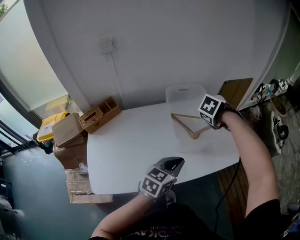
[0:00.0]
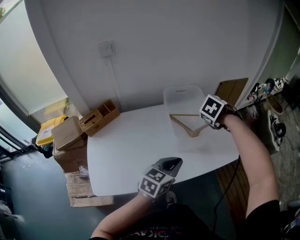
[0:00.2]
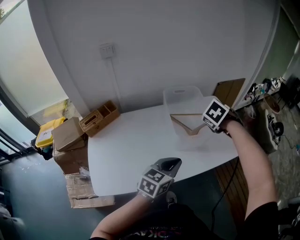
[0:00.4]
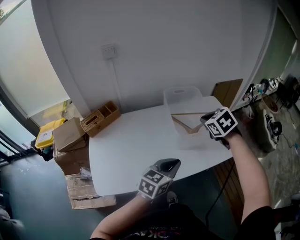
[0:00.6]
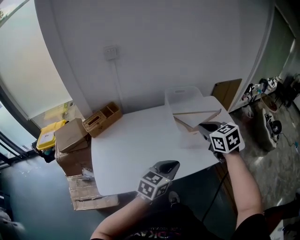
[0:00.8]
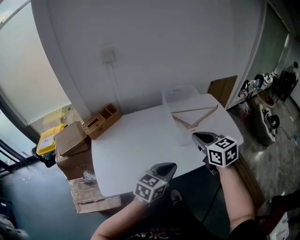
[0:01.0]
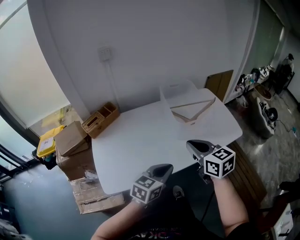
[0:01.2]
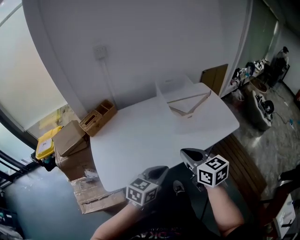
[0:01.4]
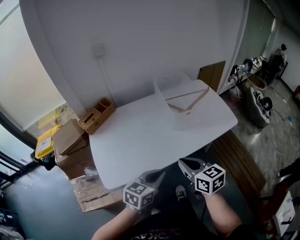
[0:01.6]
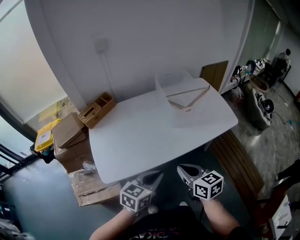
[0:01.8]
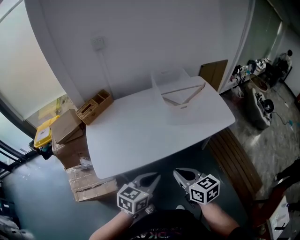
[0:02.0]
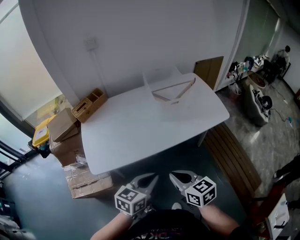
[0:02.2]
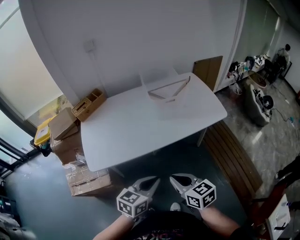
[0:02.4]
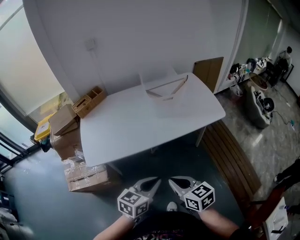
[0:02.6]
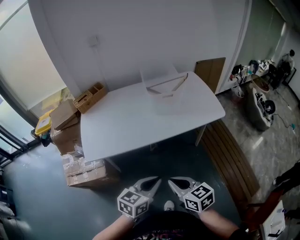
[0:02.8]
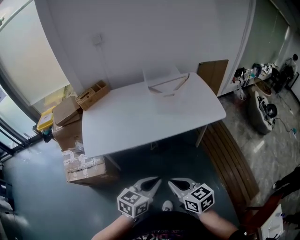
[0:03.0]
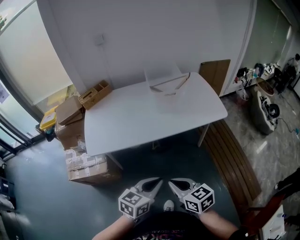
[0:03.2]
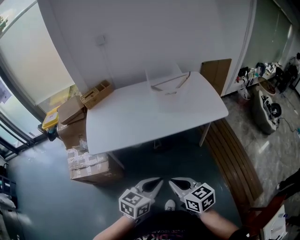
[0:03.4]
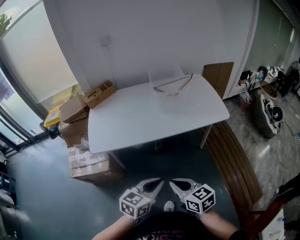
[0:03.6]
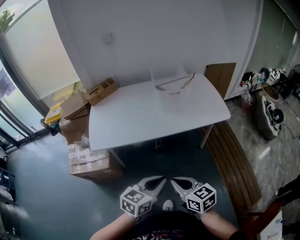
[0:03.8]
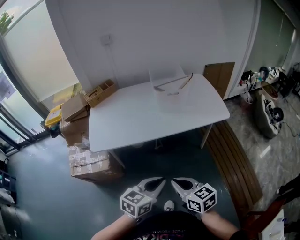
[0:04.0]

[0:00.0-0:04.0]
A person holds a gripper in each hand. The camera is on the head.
0.0 to 1.4 s: The right gripper changes place by roughly 35 cm, angles its fingers upward, by roughly 60 degrees, and closes up, while the left gripper ends up roughly 20 cm from where it was.
1.4 to 2.6 s: The two grippers go some 25 cm backward and to the right.
2.6 to 4.0 s: The right gripper moves backward, approximately 10 cm; the left gripper goes about 10 cm backward and to the right.

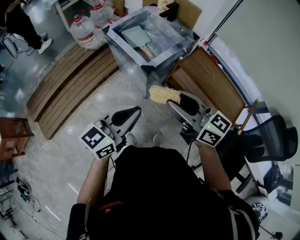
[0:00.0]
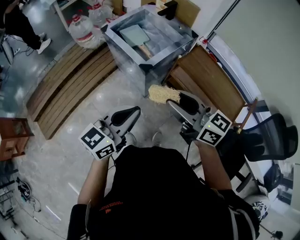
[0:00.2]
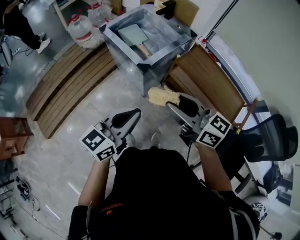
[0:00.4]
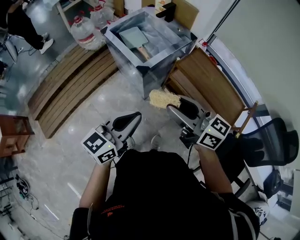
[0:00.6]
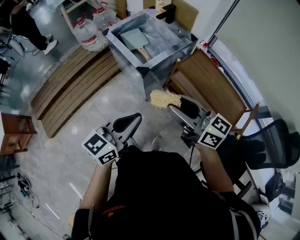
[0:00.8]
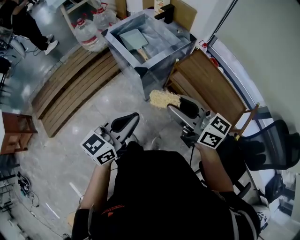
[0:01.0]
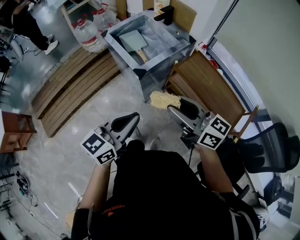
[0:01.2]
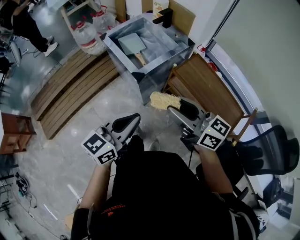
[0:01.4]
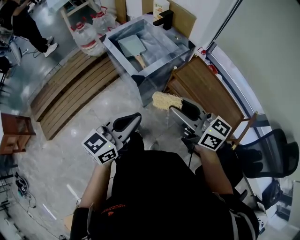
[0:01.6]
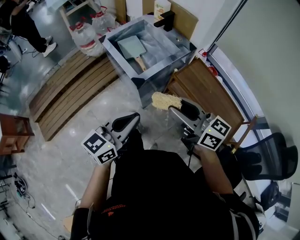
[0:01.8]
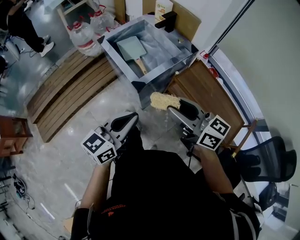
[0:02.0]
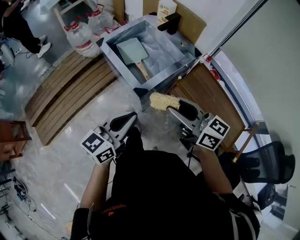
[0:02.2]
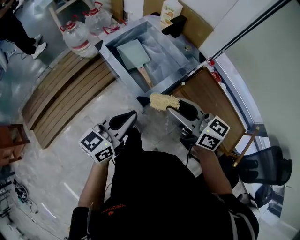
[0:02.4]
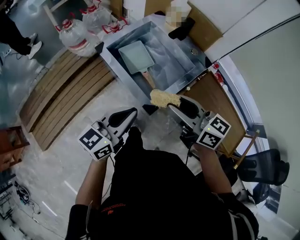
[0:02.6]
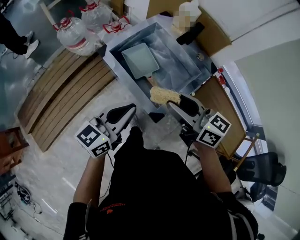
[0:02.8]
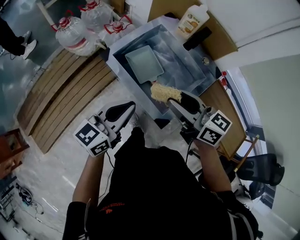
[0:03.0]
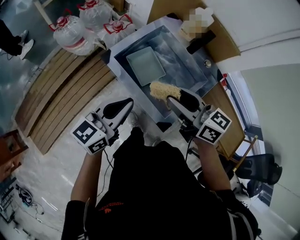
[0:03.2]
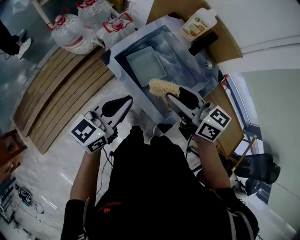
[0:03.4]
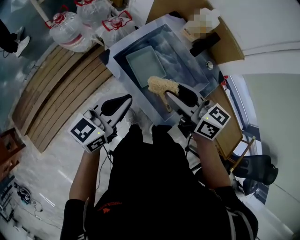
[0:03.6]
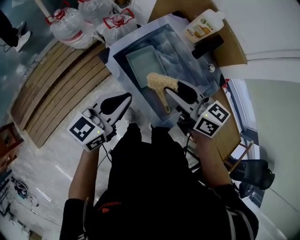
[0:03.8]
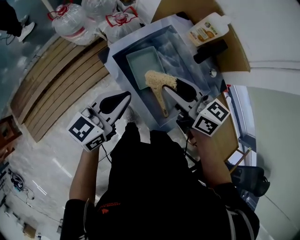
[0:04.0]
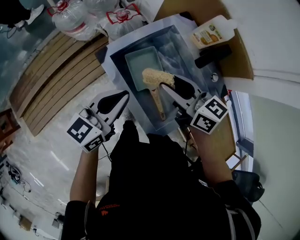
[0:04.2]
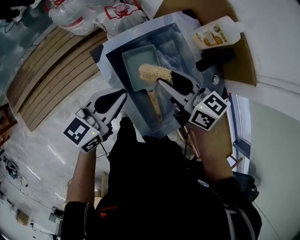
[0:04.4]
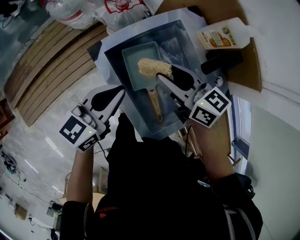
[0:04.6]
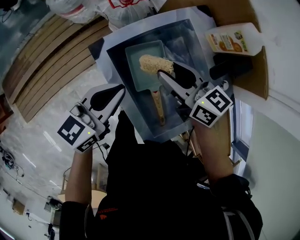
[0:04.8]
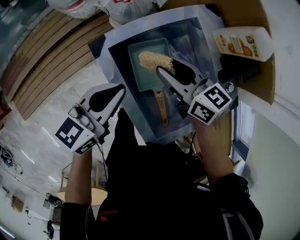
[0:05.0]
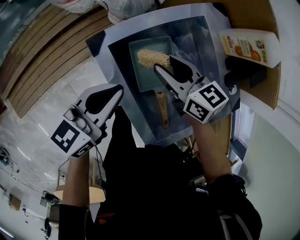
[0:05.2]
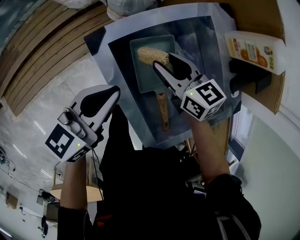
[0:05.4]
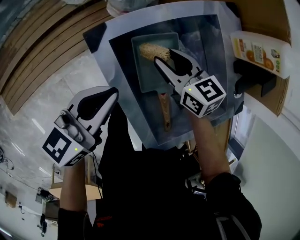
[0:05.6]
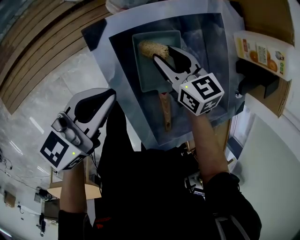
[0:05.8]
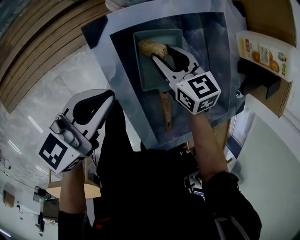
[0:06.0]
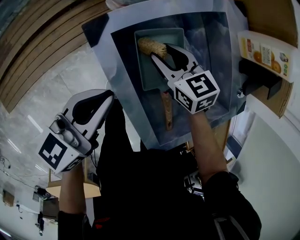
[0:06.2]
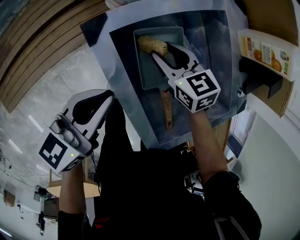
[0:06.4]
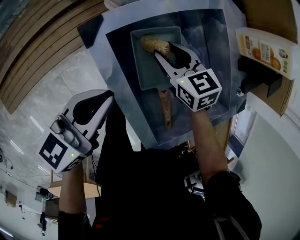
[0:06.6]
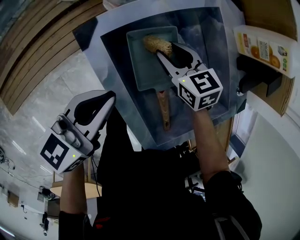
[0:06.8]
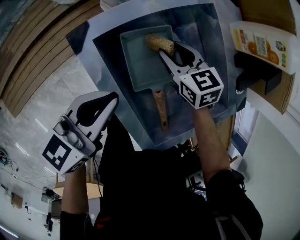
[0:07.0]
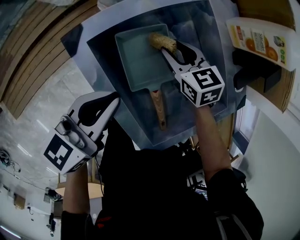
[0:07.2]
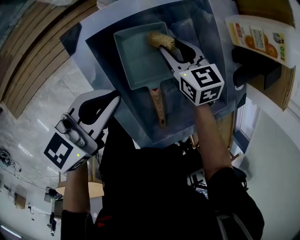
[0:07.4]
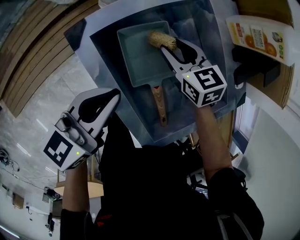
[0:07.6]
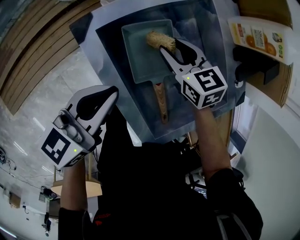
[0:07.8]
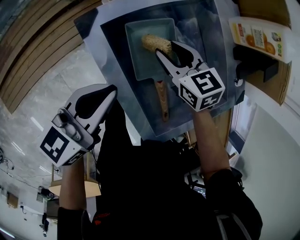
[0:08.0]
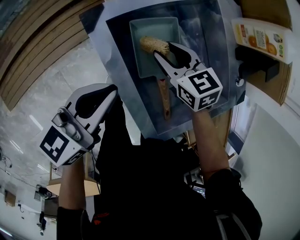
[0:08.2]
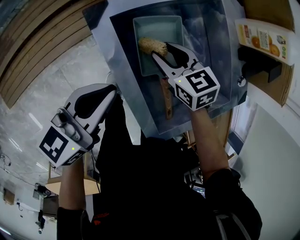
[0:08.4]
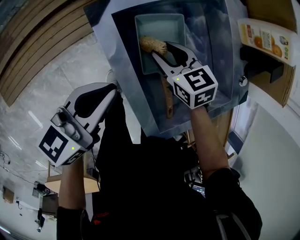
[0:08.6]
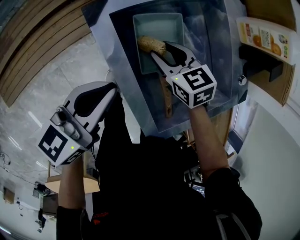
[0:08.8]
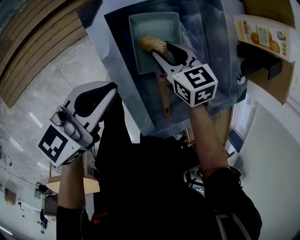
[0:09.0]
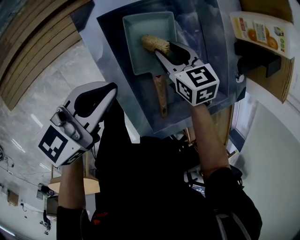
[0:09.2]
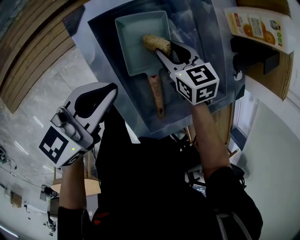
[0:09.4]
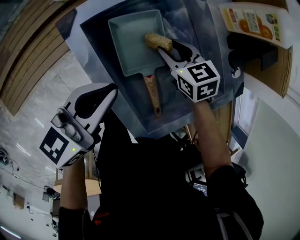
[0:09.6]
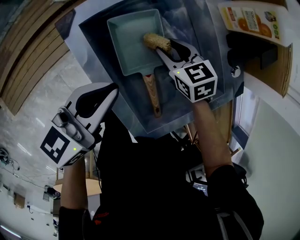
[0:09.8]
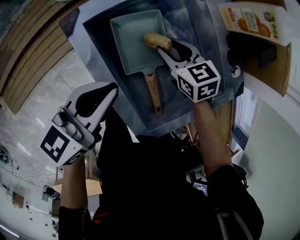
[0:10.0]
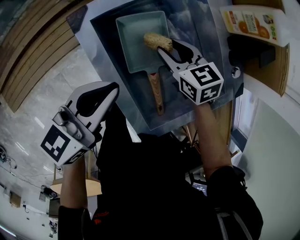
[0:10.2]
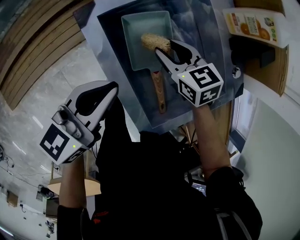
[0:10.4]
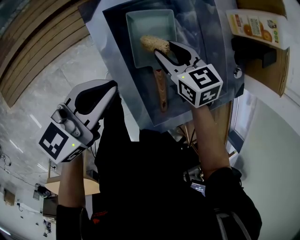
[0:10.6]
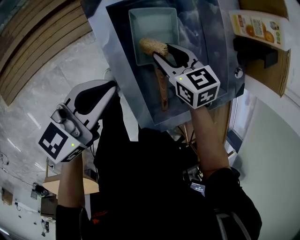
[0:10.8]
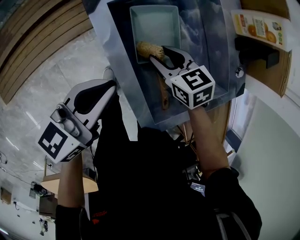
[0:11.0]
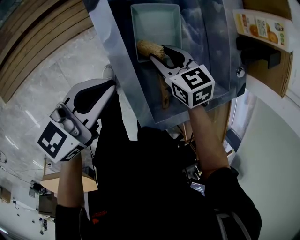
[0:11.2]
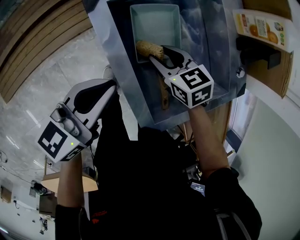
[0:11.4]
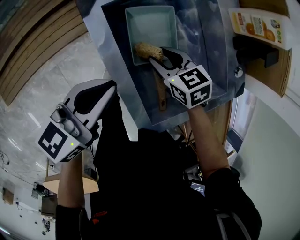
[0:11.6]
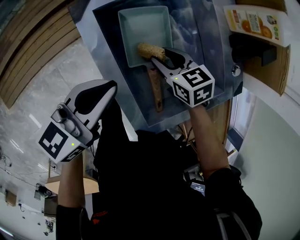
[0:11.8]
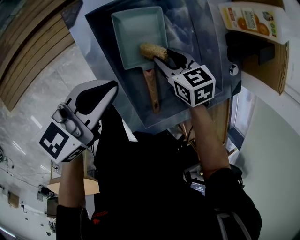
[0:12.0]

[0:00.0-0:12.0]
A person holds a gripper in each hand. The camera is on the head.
0.0 to 1.6 s: Both grippers move to the right, approximately 10 cm.
1.6 to 3.0 s: Both grippers move forward and to the left, some 40 cm.
3.0 to 4.4 s: Both grippers move forward and downward, roughly 20 cm.
4.4 to 6.0 s: The right gripper goes about 20 cm downward, and swivels approximately 30 degrees, while the left gripper travels downward and to the left by about 10 cm.
6.0 to 7.6 s: The grippers both shift to the right by approximately 5 cm.
7.6 to 9.0 s: The right gripper is displaced backward by some 5 cm.
10.4 to 12.0 s: The right gripper moves some 5 cm.

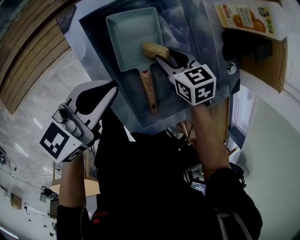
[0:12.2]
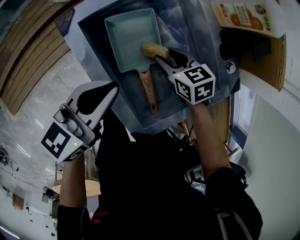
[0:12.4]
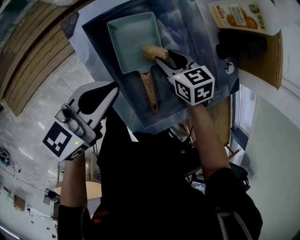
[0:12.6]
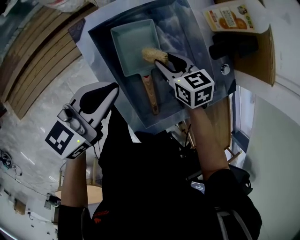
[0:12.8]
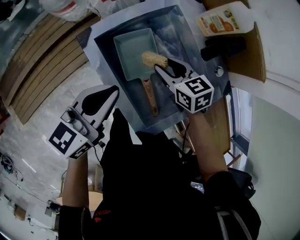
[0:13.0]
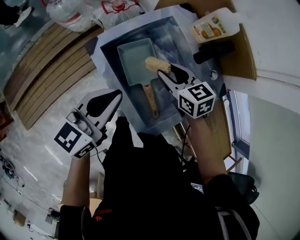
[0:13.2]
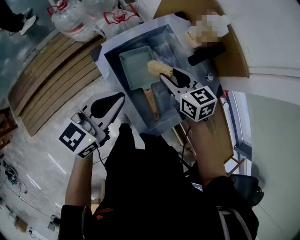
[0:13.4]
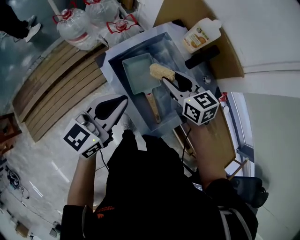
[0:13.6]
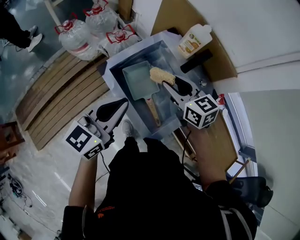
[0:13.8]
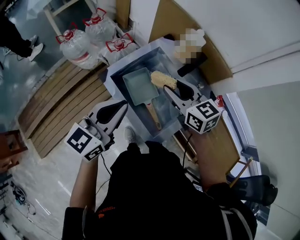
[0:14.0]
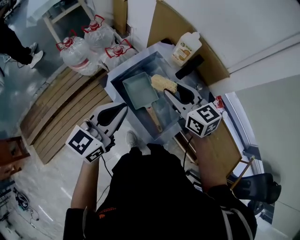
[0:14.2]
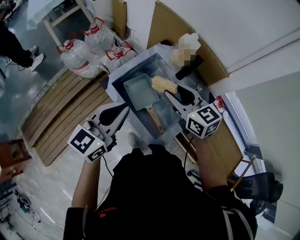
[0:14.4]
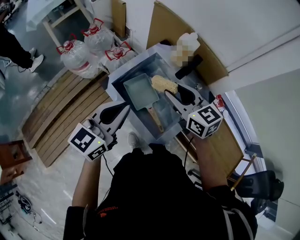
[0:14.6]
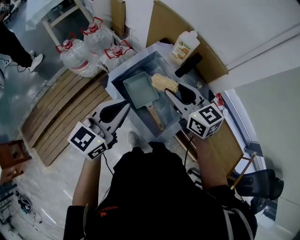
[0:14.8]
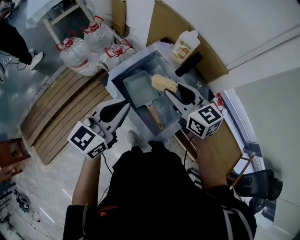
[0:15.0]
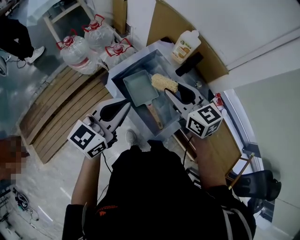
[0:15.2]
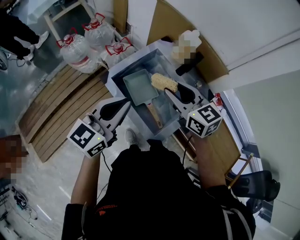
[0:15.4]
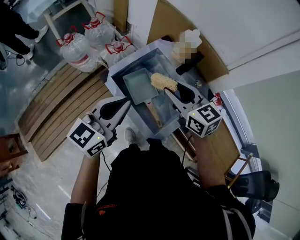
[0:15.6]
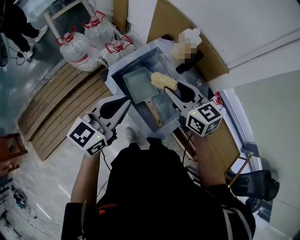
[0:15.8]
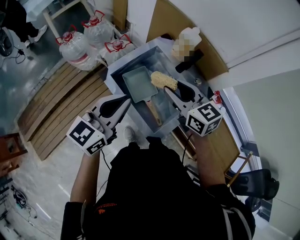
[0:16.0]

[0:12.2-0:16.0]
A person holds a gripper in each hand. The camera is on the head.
12.2 to 13.4 s: The two grippers go about 15 cm upward. The right gripper swivels approximately 20 degrees.
13.4 to 14.8 s: The left gripper heads upward, covering some 10 cm, while the right gripper is displaced upward by some 15 cm.
14.8 to 16.0 s: The two grippers keep their place.

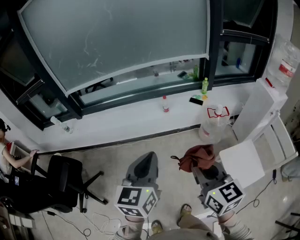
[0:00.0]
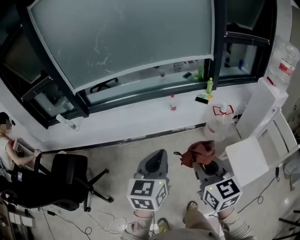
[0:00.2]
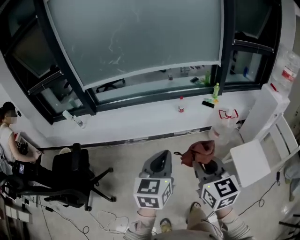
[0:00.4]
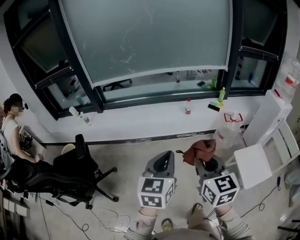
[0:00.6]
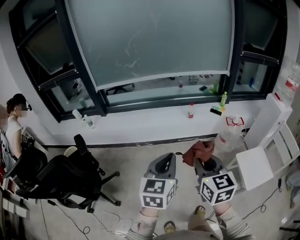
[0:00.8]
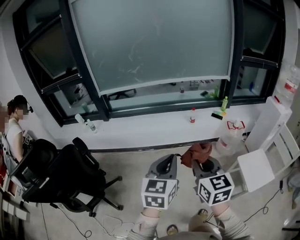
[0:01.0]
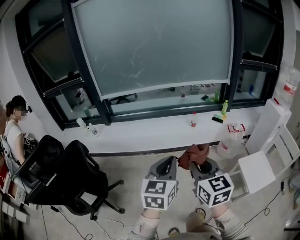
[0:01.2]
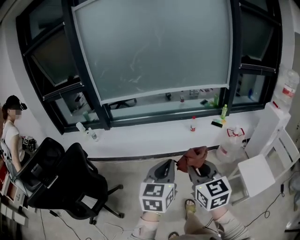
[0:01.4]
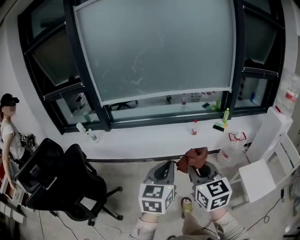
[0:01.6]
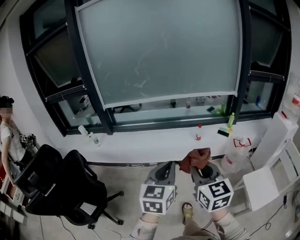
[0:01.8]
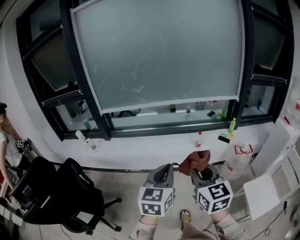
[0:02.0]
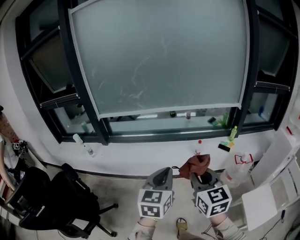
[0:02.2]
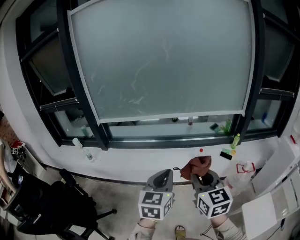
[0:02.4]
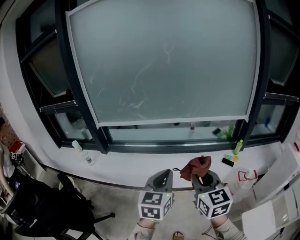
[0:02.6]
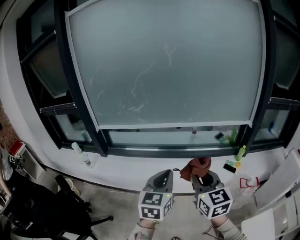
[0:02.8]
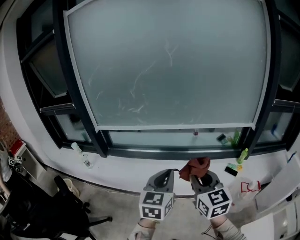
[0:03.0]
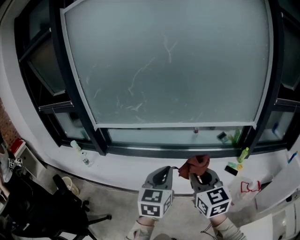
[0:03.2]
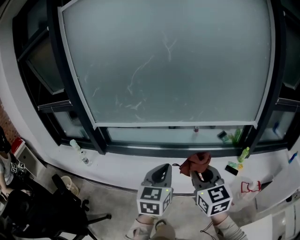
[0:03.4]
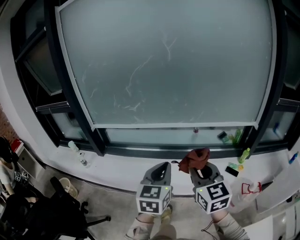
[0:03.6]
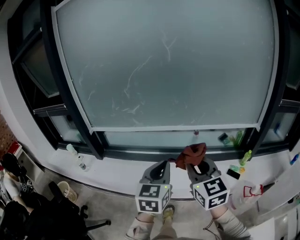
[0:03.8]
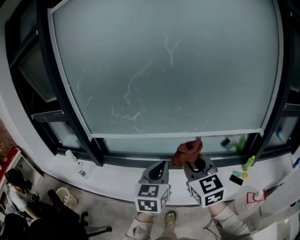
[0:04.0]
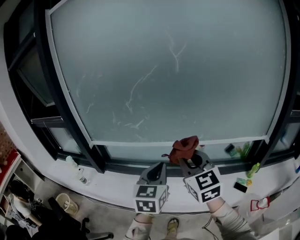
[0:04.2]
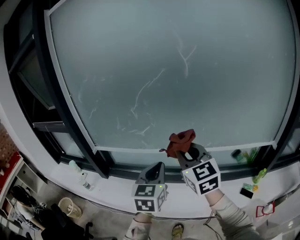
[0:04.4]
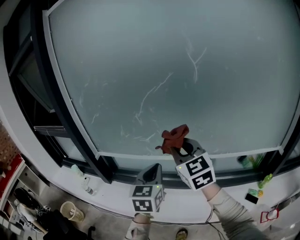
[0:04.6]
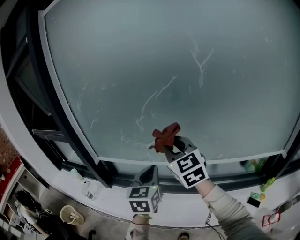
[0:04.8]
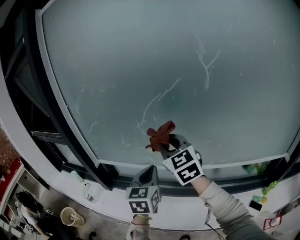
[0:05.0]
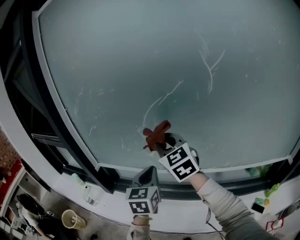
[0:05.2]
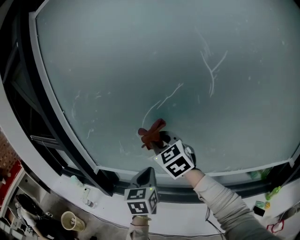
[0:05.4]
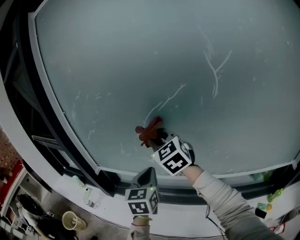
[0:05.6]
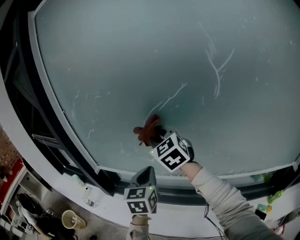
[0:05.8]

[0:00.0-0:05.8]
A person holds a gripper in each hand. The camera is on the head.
0.0 to 1.4 s: The left gripper shifts roughly 25 cm to the left and backward, while the right gripper goes some 25 cm to the left.
1.4 to 2.8 s: The two grippers go approximately 40 cm forward.
2.8 to 4.4 s: The grippers both shift forward by roughly 35 cm.
4.4 to 5.8 s: Both grippers move forward, about 25 cm.
